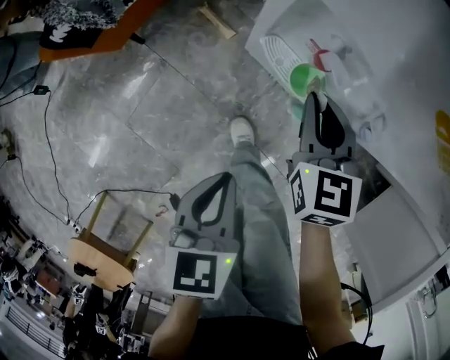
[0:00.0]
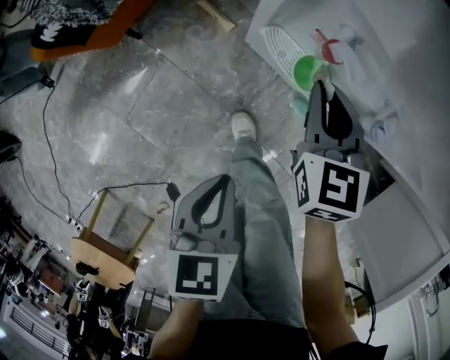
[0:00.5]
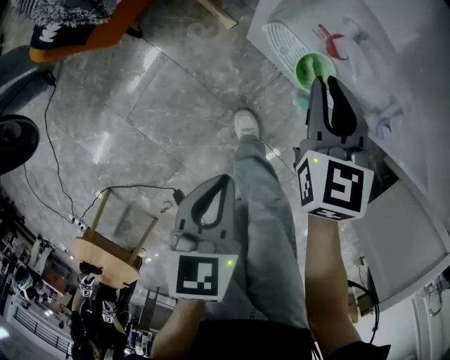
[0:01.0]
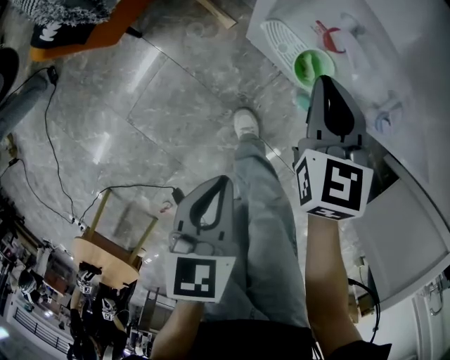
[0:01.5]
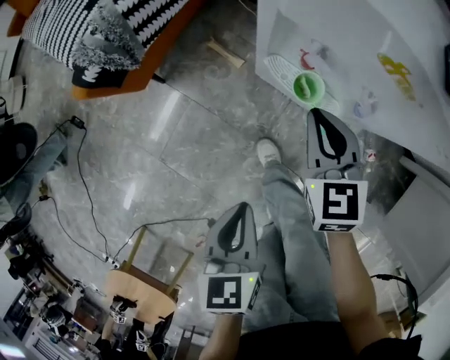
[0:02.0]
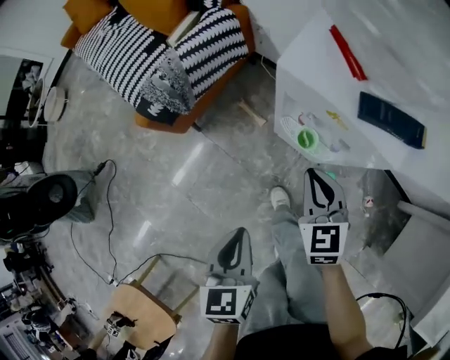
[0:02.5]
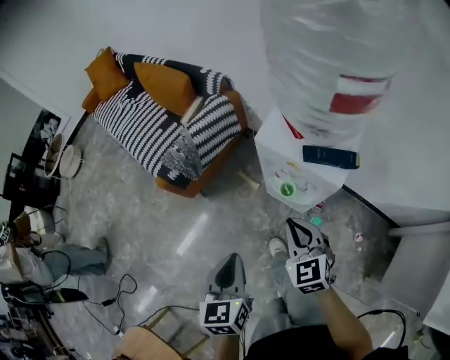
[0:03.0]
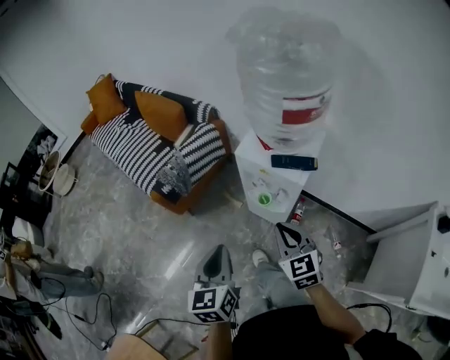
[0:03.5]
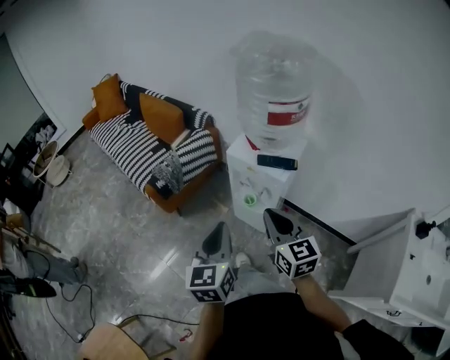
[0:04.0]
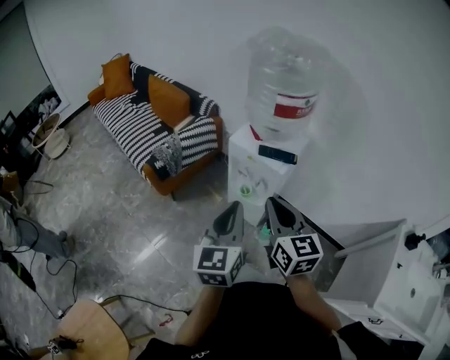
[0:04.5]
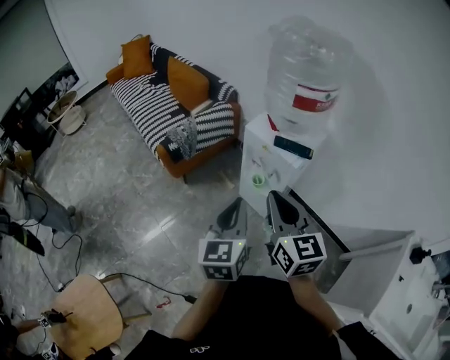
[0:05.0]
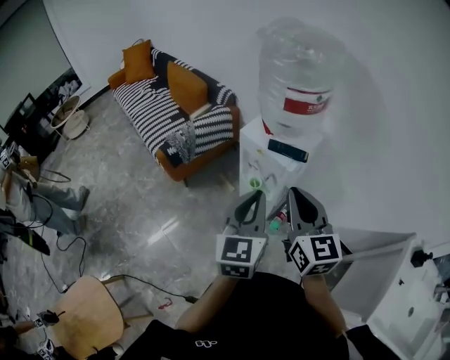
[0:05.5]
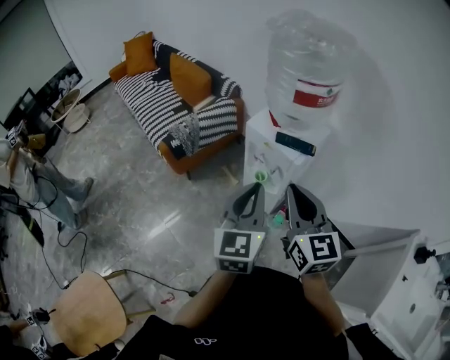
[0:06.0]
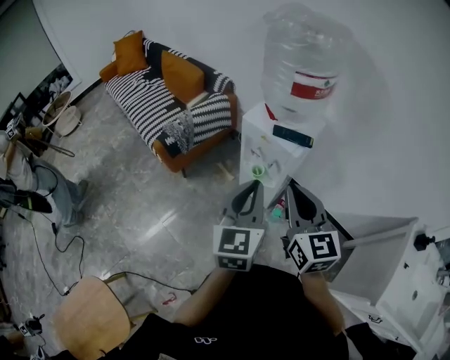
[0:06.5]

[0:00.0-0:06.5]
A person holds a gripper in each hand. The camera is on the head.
0:00.0 to 0:02.0: The left gripper shifts about 5 cm backward, while the right gripper shifts by some 5 cm.
0:02.0 to 0:04.5: The left gripper moves upward, roughly 40 cm, and tips its fingers upward by approximately 40 degrees. The right gripper heads upward and backward, covering some 50 cm, and changes its angle by some 30 degrees.
0:04.5 to 0:06.5: The right gripper travels to the right and back again, roughly 5 cm each way.

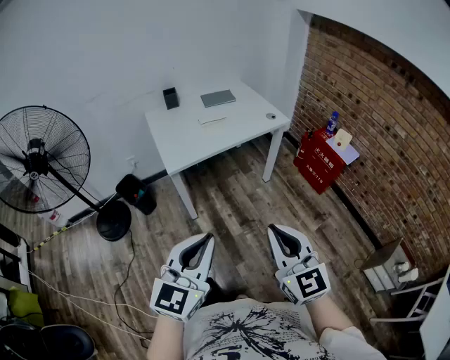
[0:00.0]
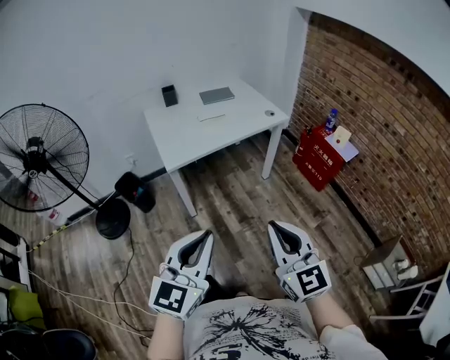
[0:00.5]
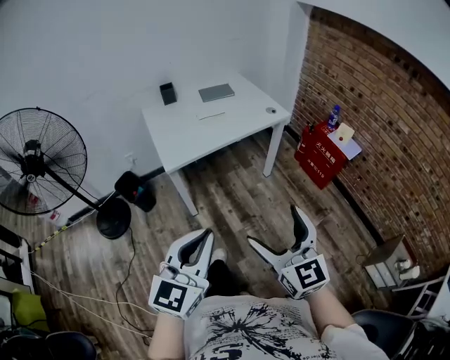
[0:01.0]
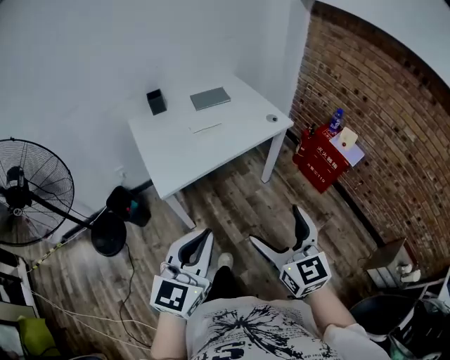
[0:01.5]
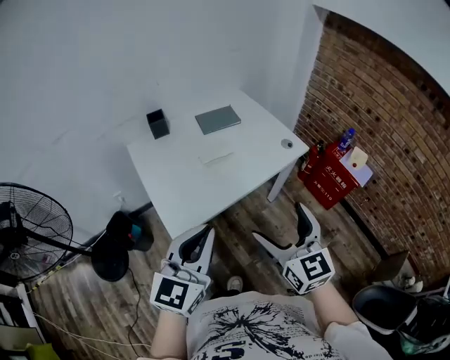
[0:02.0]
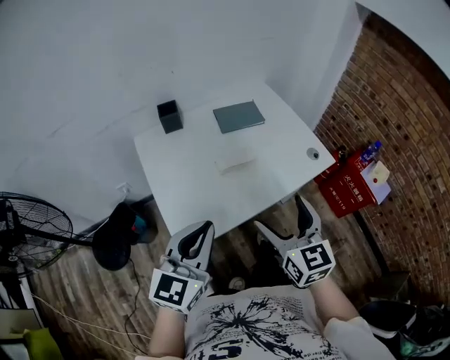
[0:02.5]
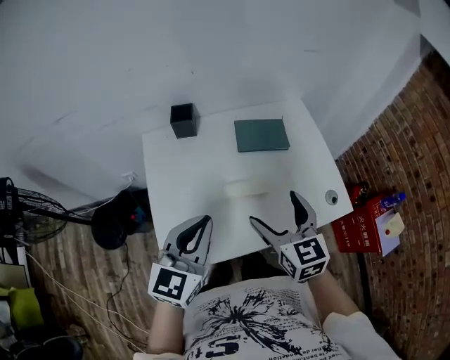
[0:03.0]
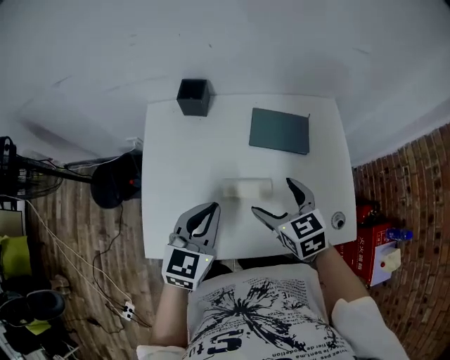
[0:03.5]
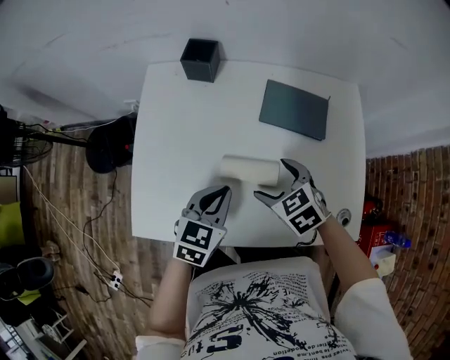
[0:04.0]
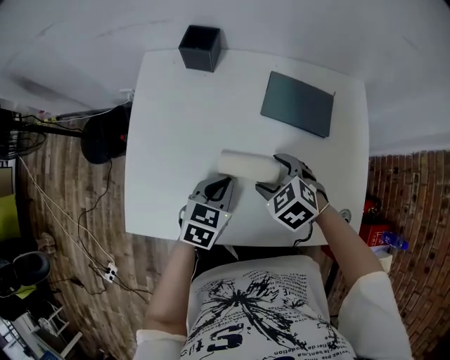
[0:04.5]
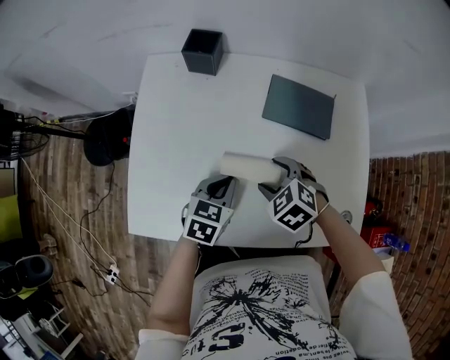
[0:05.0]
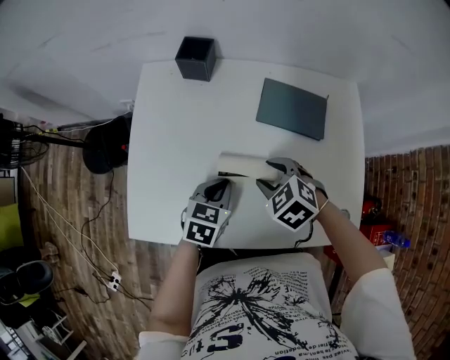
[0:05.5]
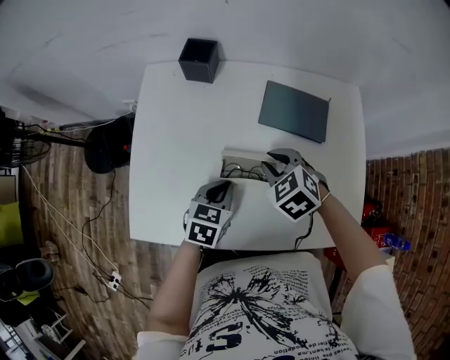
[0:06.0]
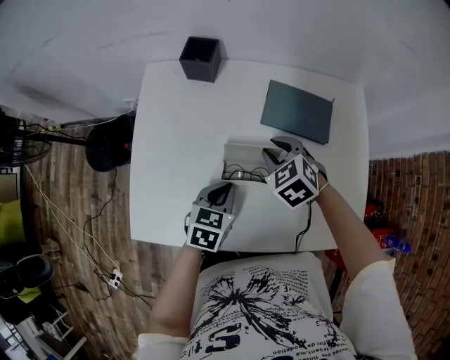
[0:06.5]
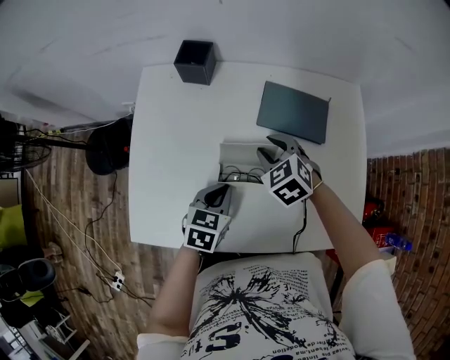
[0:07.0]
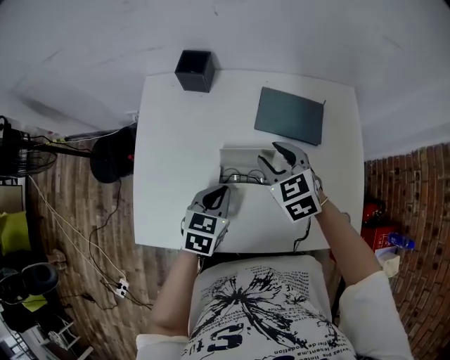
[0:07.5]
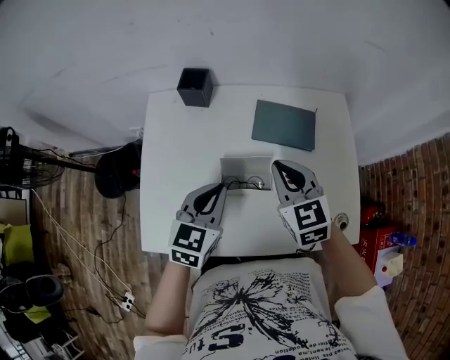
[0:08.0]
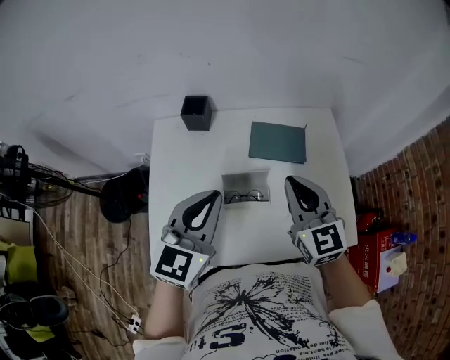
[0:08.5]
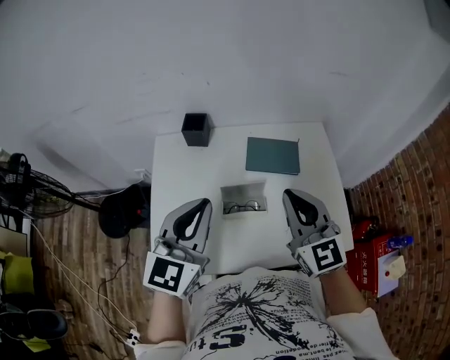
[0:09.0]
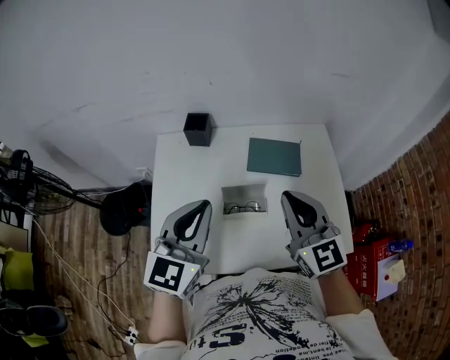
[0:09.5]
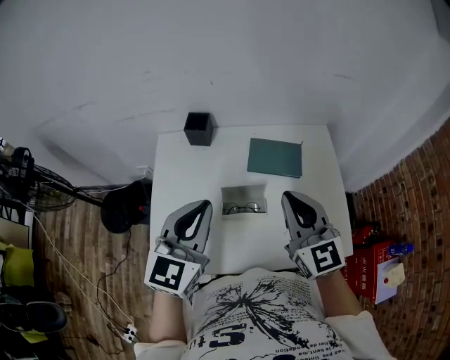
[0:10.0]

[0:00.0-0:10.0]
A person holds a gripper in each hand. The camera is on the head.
0:00.0 to 0:02.0: Both grippers are carried forward, approximately 40 cm. The right gripper opens its fingers.
0:02.0 to 0:04.0: The two grippers travel together, approximately 40 cm. The right gripper angles its fingers downward, by roughly 50 degrees, while the left gripper tips its fingers downward by roughly 30 degrees.
0:04.0 to 0:06.0: The left gripper heads downward, covering roughly 5 cm. The right gripper heads forward, covering approximately 5 cm, and closes up.
0:06.0 to 0:08.0: The two grippers go approximately 15 cm upward. The left gripper changes its angle by approximately 20 degrees, while the right gripper turns by about 40 degrees.
0:08.0 to 0:10.0: The left gripper is displaced upward by some 15 cm, and turns by approximately 20 degrees; the right gripper goes roughly 15 cm upward and backward, and rotates about 20 degrees.

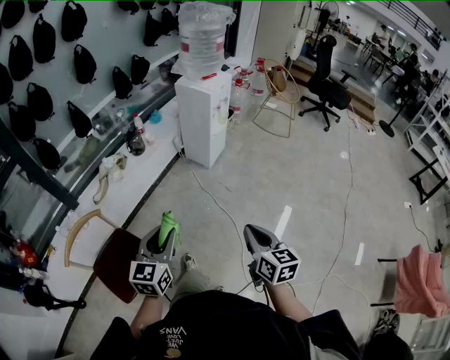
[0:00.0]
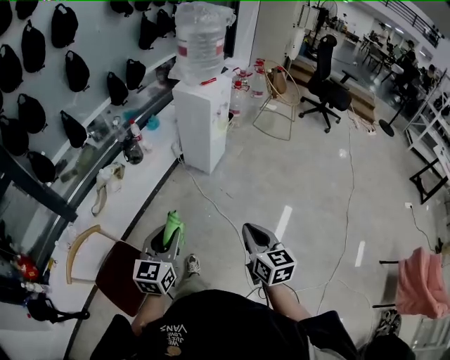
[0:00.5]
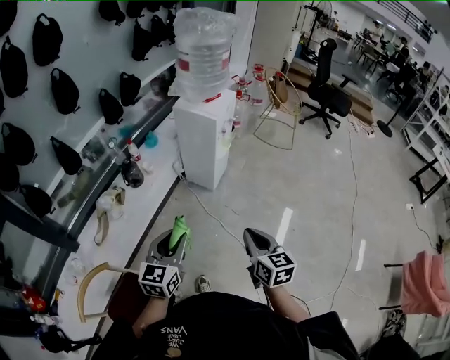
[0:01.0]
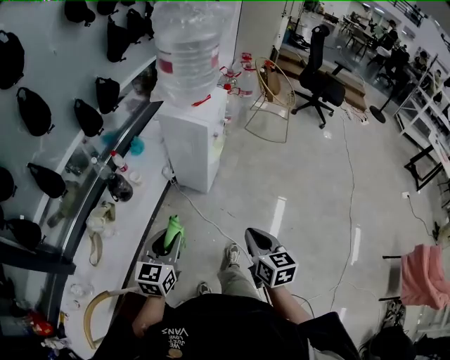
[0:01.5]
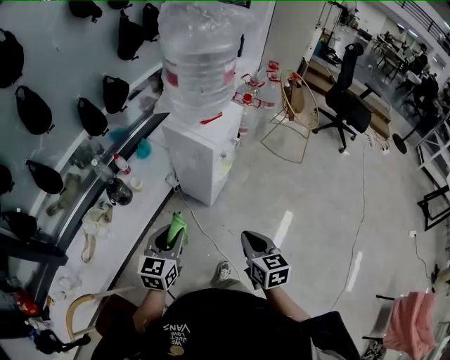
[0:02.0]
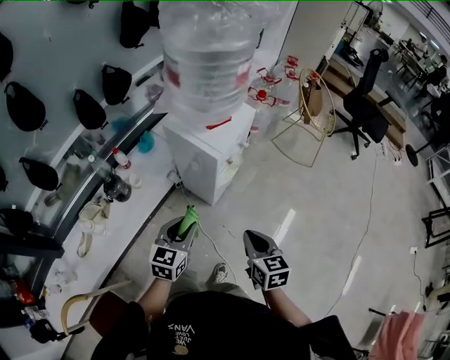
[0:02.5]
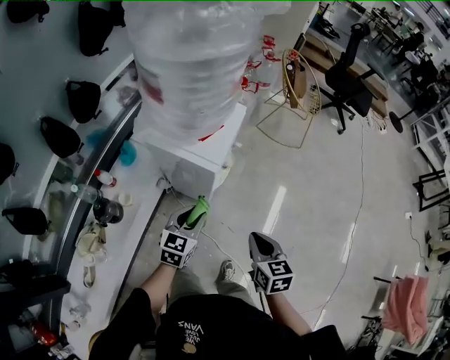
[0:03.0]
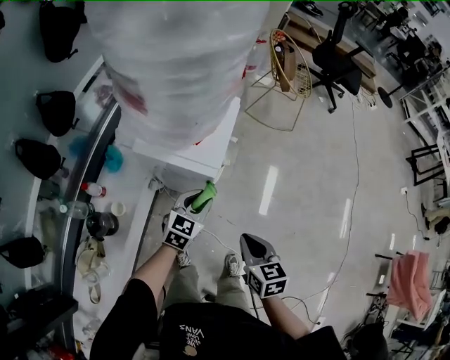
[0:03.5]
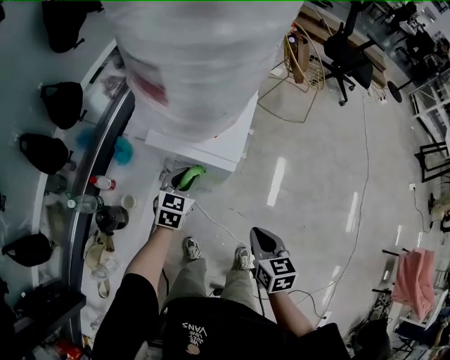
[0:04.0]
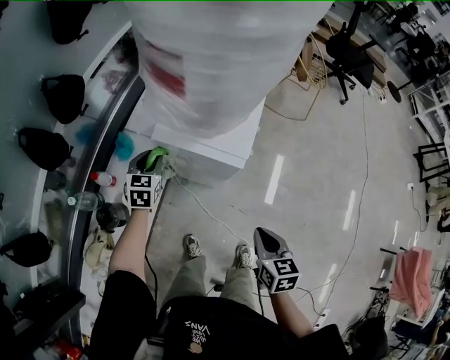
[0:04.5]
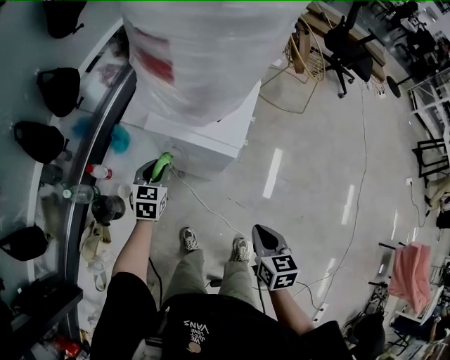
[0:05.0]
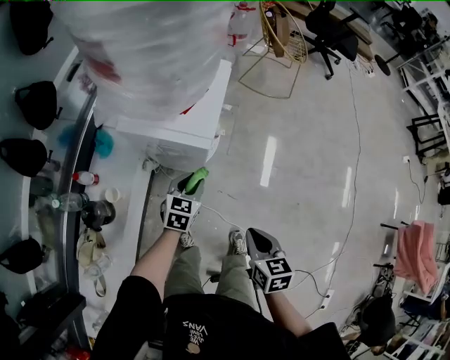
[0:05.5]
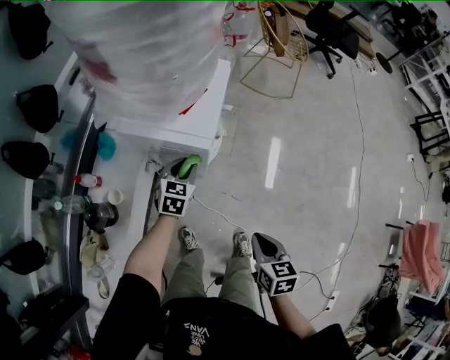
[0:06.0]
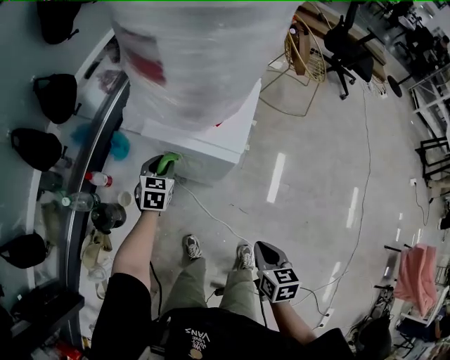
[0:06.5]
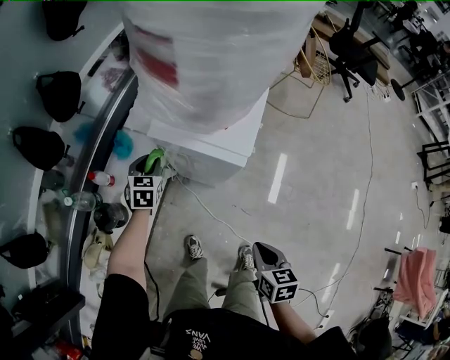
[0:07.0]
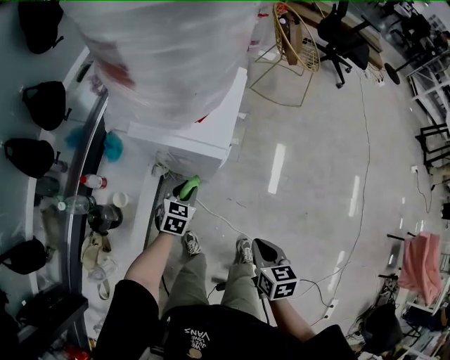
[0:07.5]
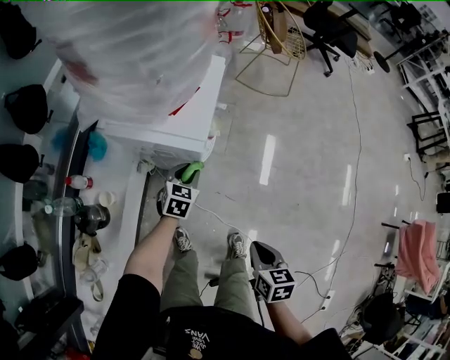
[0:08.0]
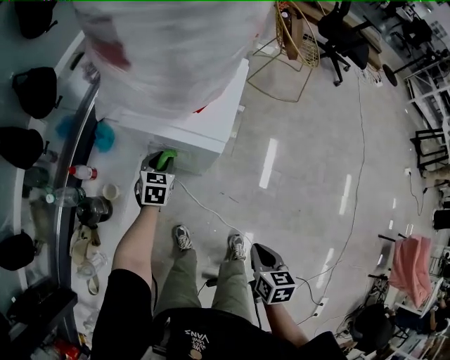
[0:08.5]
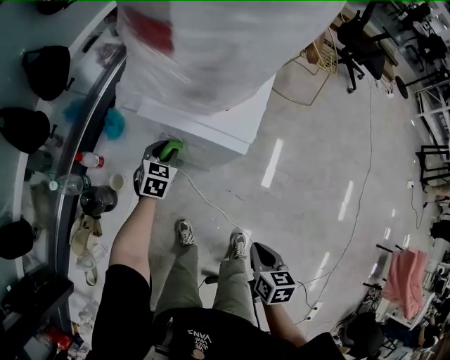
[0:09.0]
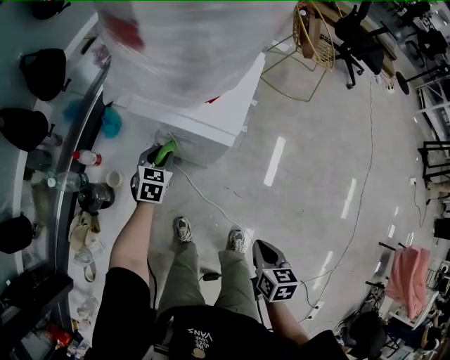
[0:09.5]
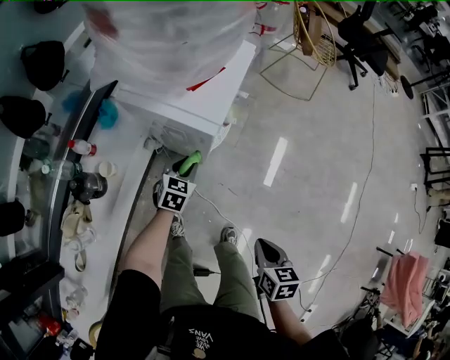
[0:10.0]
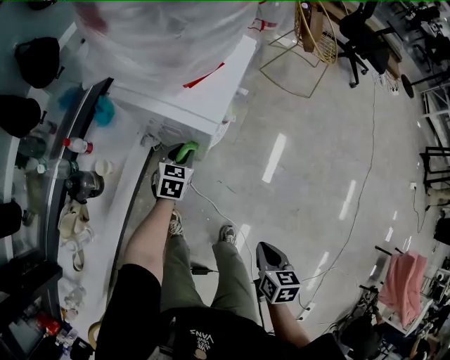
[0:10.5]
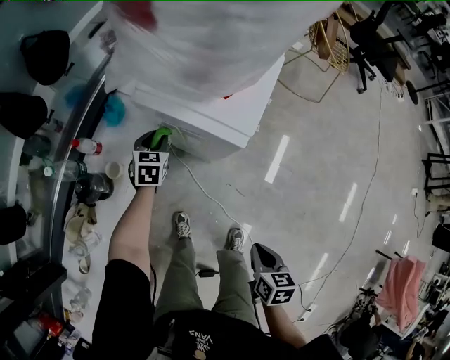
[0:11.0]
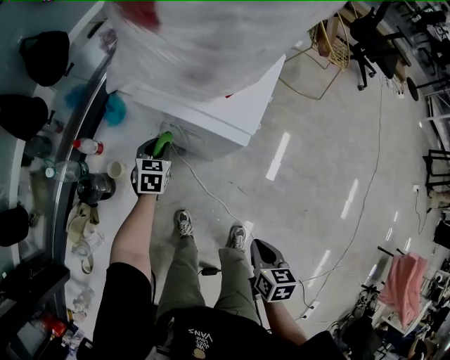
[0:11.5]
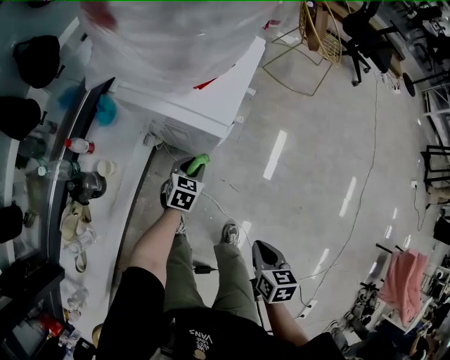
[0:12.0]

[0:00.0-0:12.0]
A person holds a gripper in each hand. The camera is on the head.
0:00.0 to 0:02.0: The pair of grippers is taken forward, approximately 50 cm.
0:02.0 to 0:04.0: The right gripper shifts approximately 20 cm forward, downward and to the left, and rotates roughly 20 degrees. Meanwhile the left gripper is displaced forward and downward by approximately 40 cm, and rotates roughly 30 degrees.
0:04.0 to 0:06.0: The right gripper goes approximately 10 cm backward and to the right; the left gripper goes to the left and returns, roughly 15 cm each way.
0:06.0 to 0:08.0: The left gripper is displaced downward by approximately 5 cm, and reaches approximately 20 cm to the left, then returns. Meanwhile the right gripper moves some 5 cm to the left and comes back.
0:08.0 to 0:10.0: The left gripper travels to the left and back again, about 15 cm each way.
0:10.0 to 0:12.0: The left gripper goes to the left and returns, roughly 15 cm each way. Meanwhile the right gripper travels to the left and back again, some 5 cm each way.
